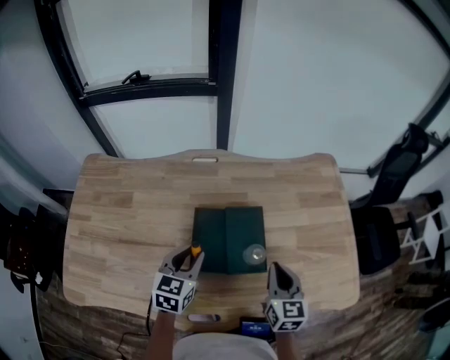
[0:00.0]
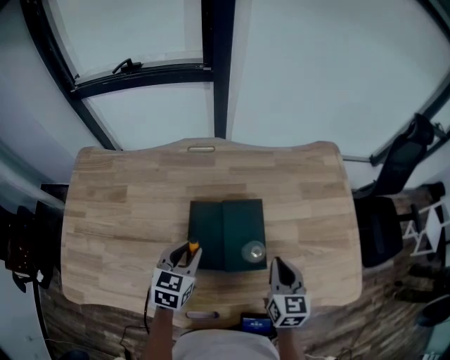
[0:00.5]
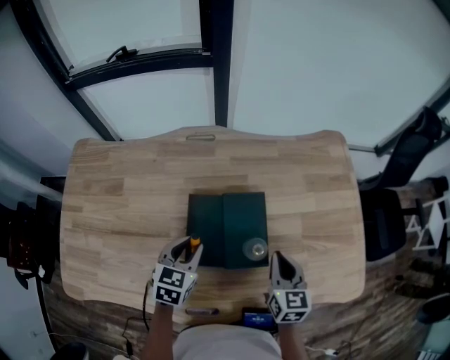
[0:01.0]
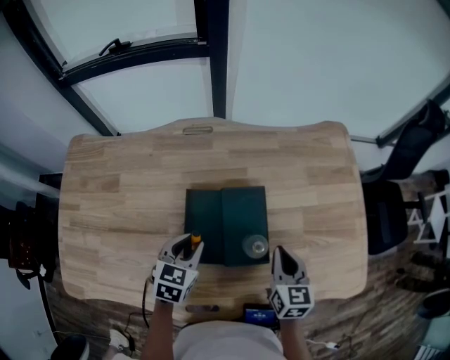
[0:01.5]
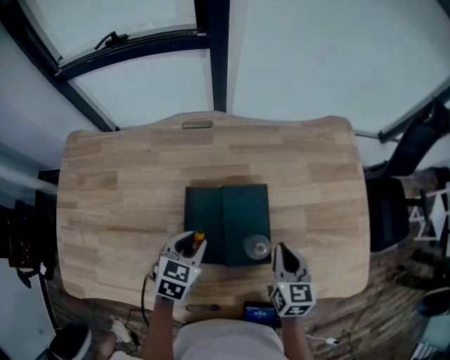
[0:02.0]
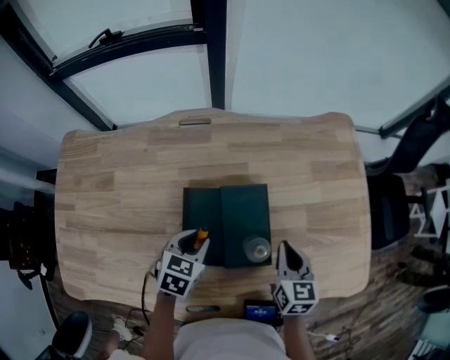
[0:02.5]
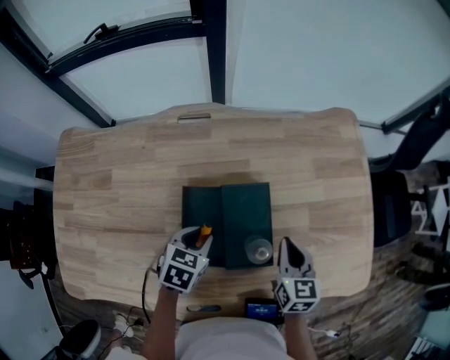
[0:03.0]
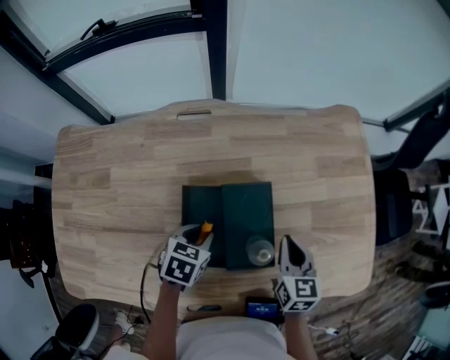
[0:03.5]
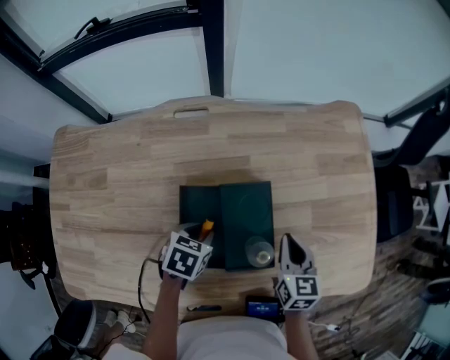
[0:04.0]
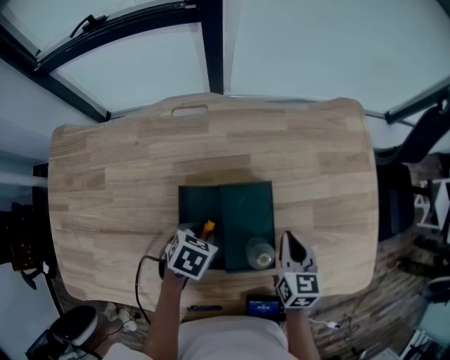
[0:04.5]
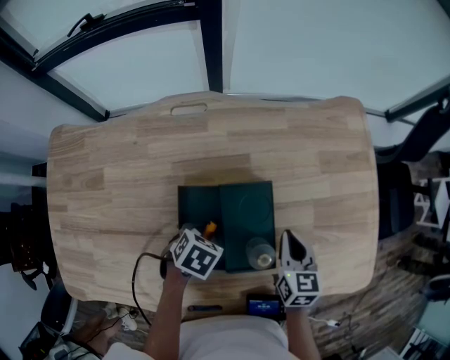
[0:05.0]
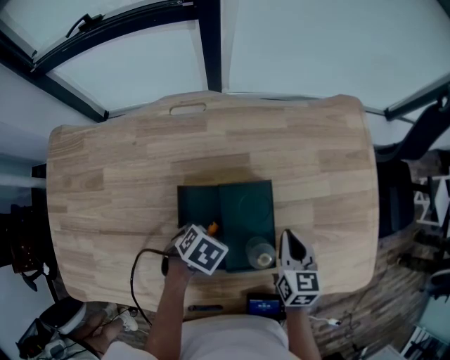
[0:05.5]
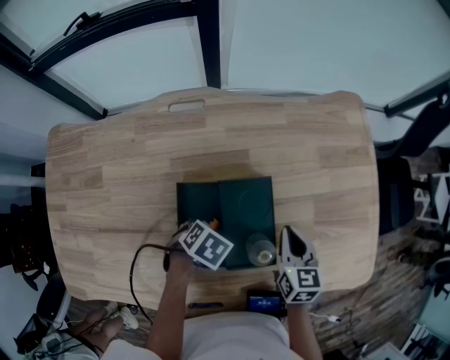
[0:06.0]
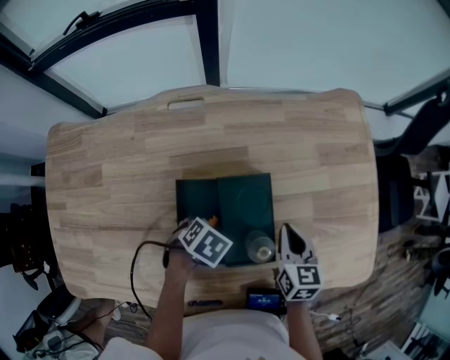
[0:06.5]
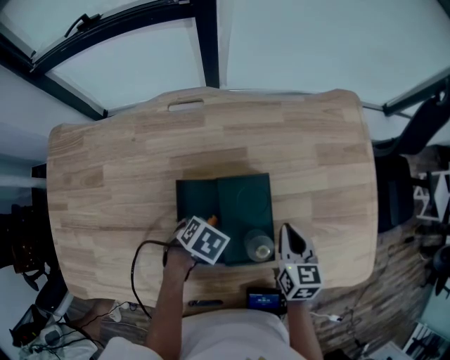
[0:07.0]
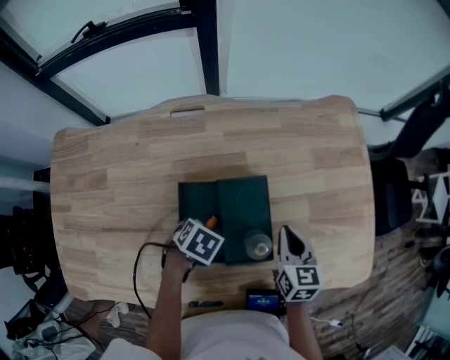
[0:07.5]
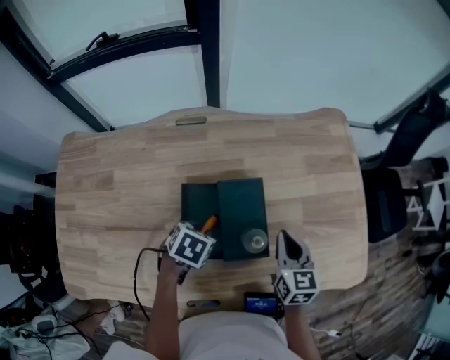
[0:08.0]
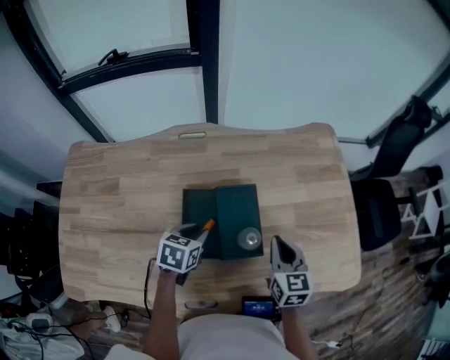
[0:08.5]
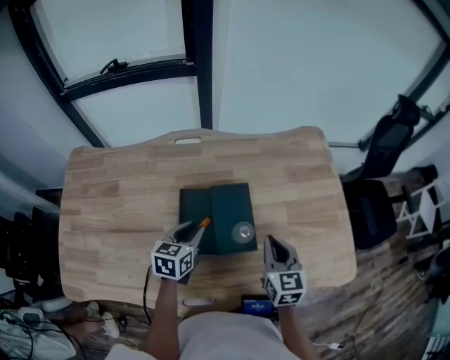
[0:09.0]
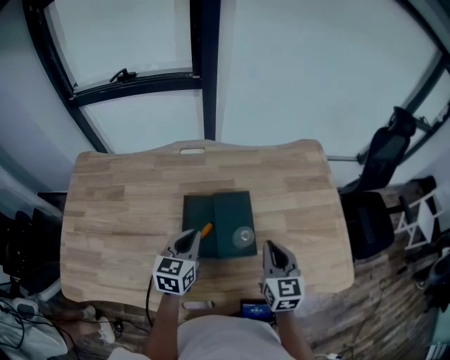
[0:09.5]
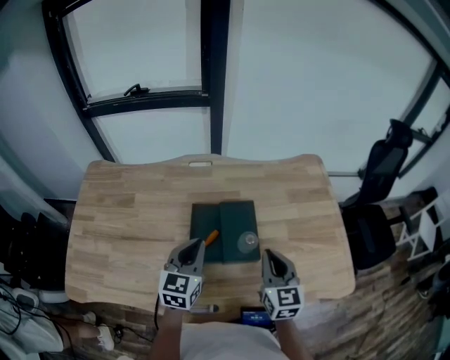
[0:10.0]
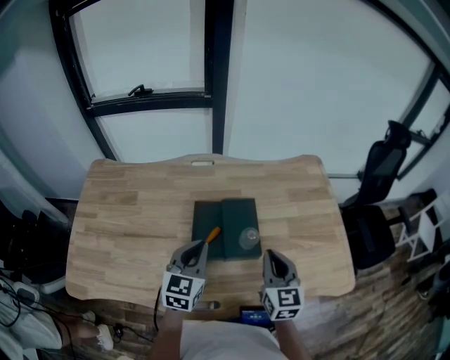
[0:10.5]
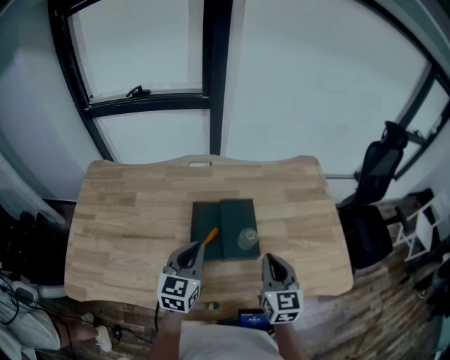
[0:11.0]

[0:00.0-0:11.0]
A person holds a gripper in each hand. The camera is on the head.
0:00.0 to 0:02.0: The grippers both shift downward by approximately 5 cm.
0:02.0 to 0:03.5: The left gripper moves some 5 cm.
0:03.5 to 0:05.5: The left gripper rotates roughly 20 degrees.
0:05.5 to 0:07.5: The grippers stay close to where they were, moving slightly.
0:07.5 to 0:09.0: Both grippers move upward, some 10 cm. The left gripper tilts its fingers some 40 degrees upward.
0:09.0 to 0:11.0: The left gripper shifts some 15 cm upward and backward, changes its angle by approximately 30 degrees, and closes its fingers. Meanwhile the right gripper shifts approximately 10 cm upward and backward.

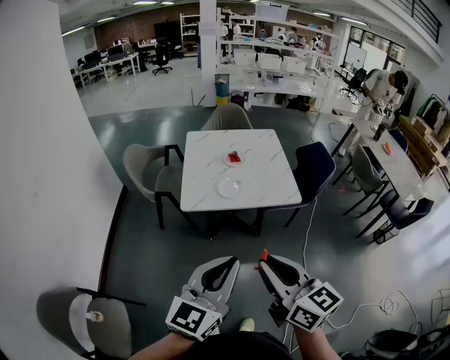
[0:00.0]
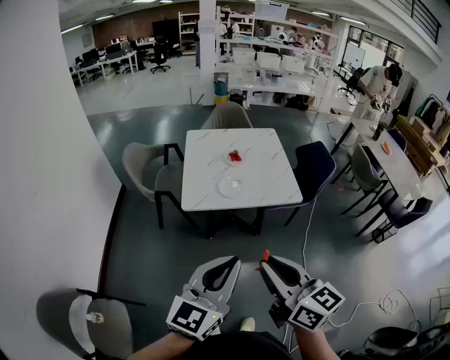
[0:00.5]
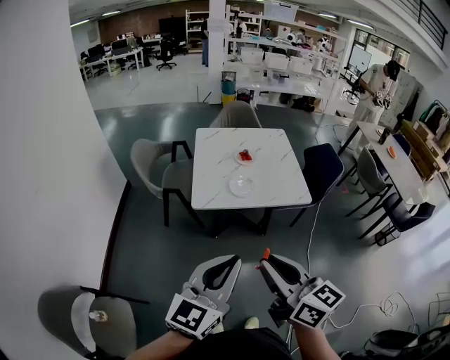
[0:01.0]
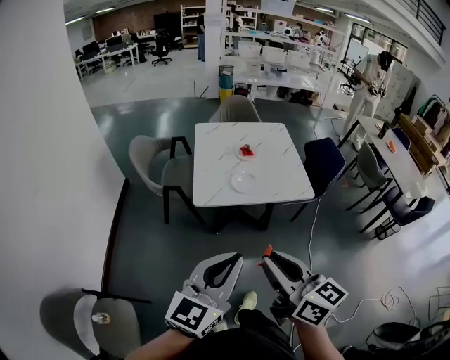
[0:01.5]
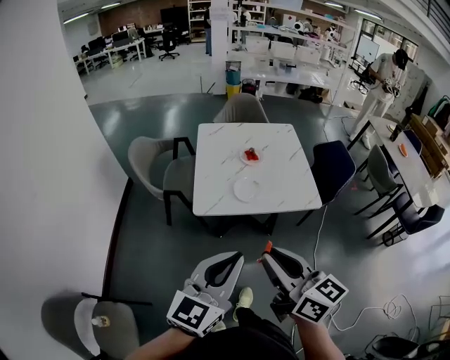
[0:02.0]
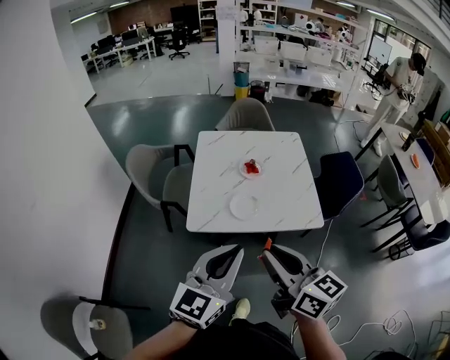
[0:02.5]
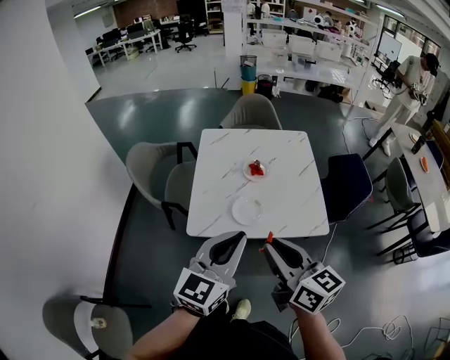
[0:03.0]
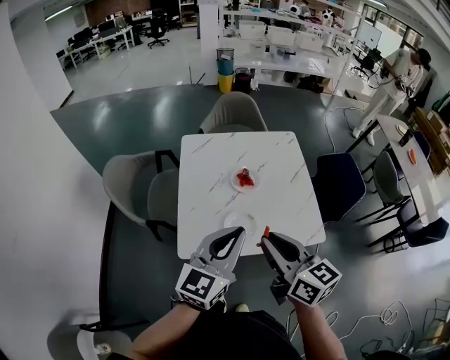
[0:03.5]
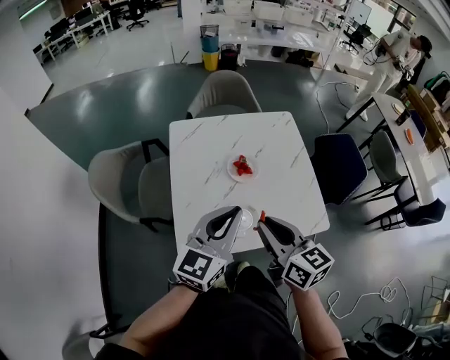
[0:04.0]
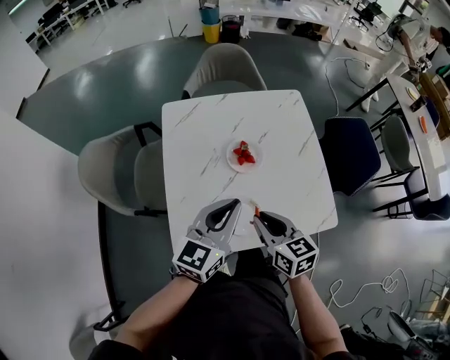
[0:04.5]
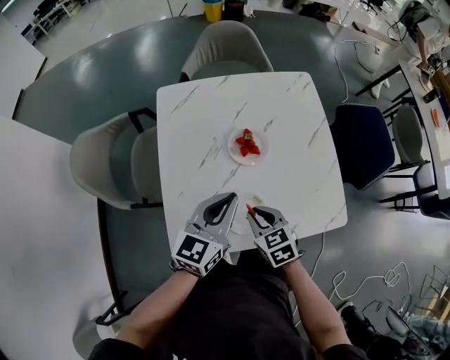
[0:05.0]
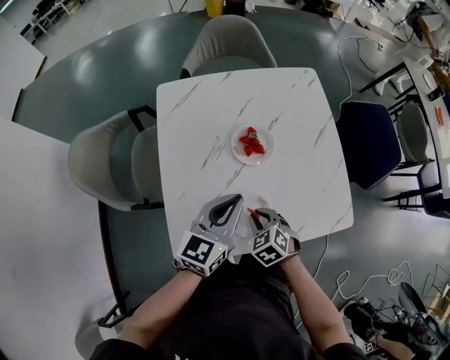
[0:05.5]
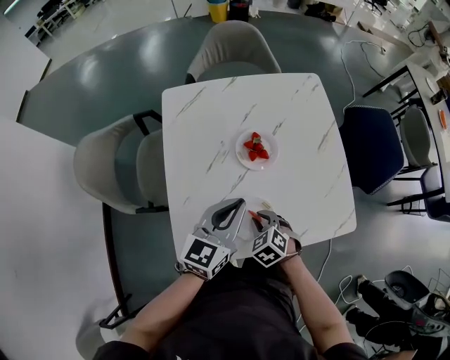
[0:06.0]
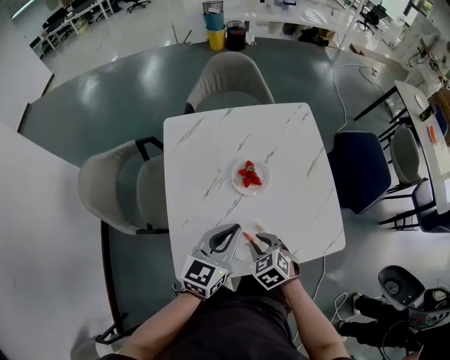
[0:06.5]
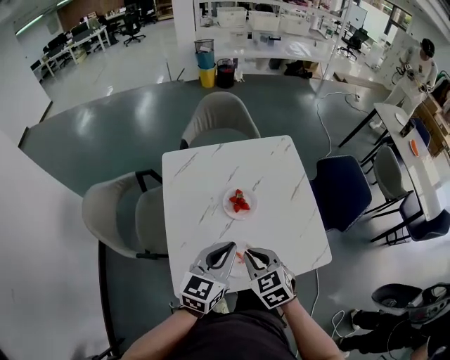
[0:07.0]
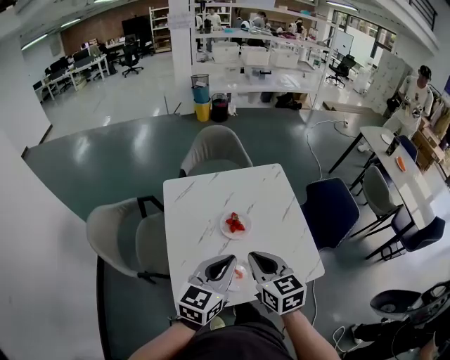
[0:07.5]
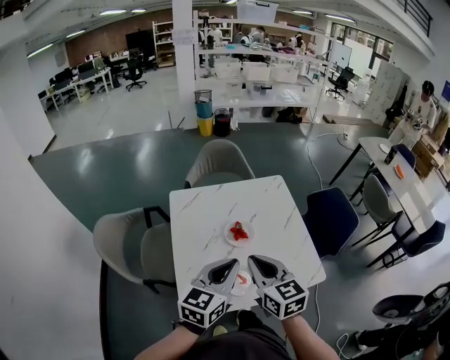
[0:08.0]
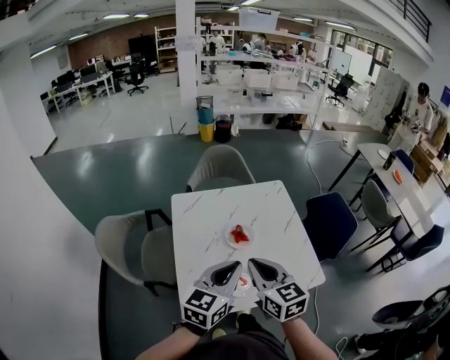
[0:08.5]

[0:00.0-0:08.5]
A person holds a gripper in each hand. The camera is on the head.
0:00.0 to 0:02.0: Both grippers travel together forward and to the left, approximately 15 cm.
0:02.0 to 0:04.0: The two grippers go about 40 cm forward.
0:04.0 to 0:06.5: The right gripper heads downward, covering roughly 25 cm, and points its fingers about 40 degrees further downward, while the left gripper shifts roughly 20 cm downward and forward.
0:06.5 to 0:08.5: The left gripper is displaced upward and backward by approximately 20 cm; the right gripper goes approximately 30 cm upward, tips its fingers upward by some 40 degrees, and closes its fingers.

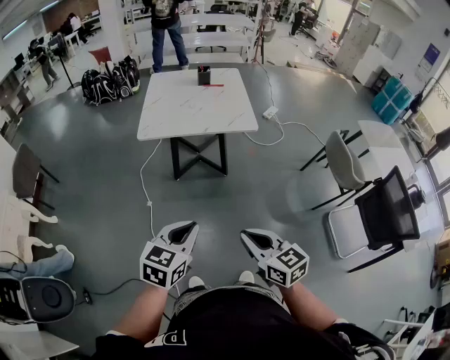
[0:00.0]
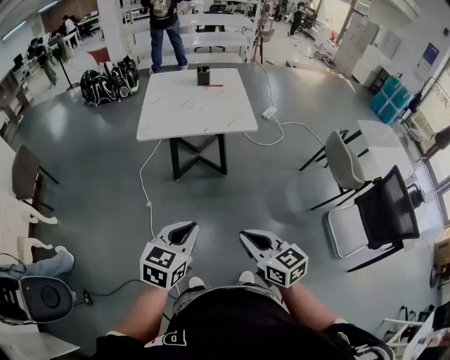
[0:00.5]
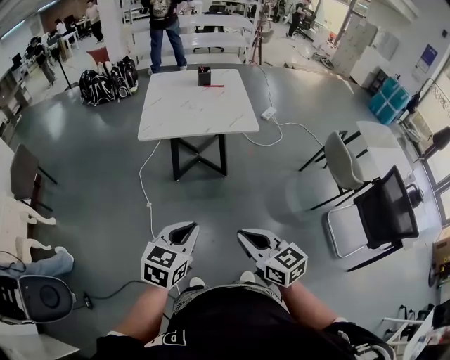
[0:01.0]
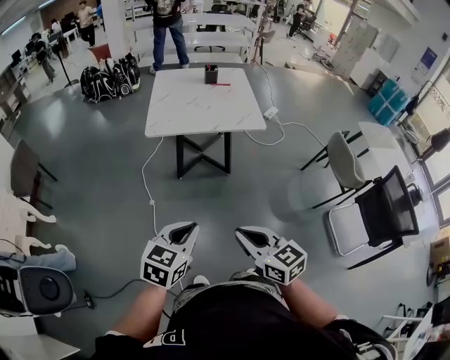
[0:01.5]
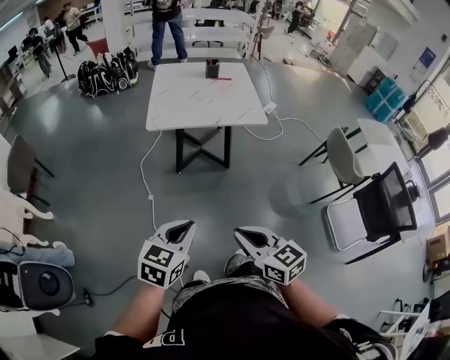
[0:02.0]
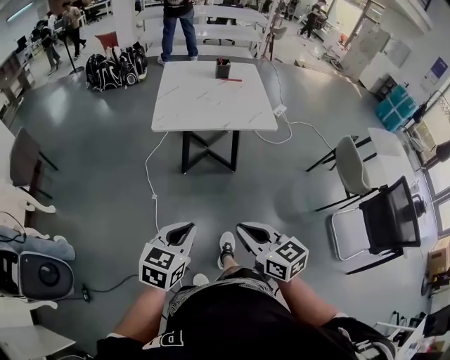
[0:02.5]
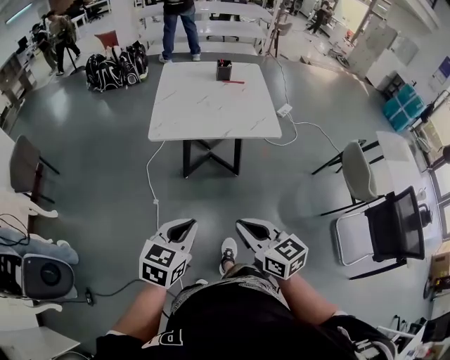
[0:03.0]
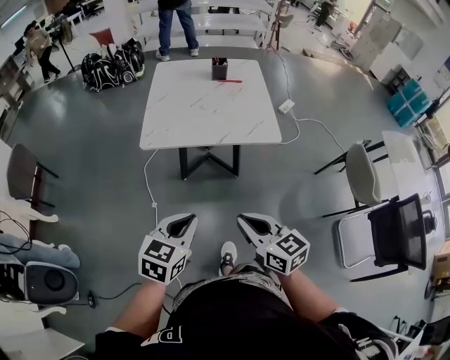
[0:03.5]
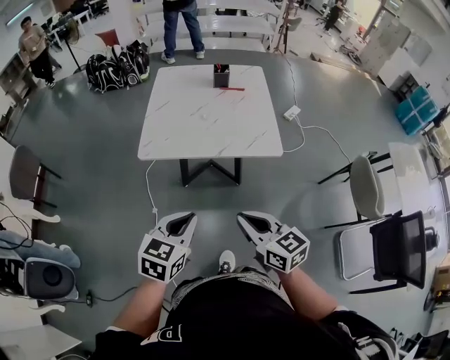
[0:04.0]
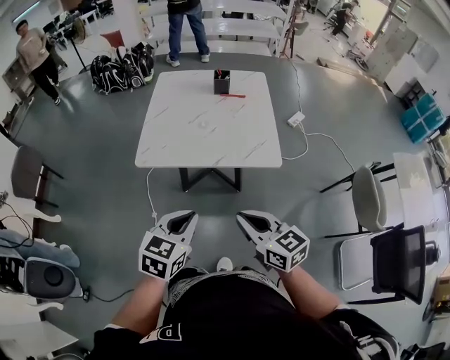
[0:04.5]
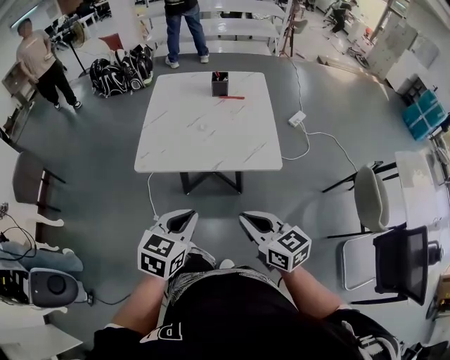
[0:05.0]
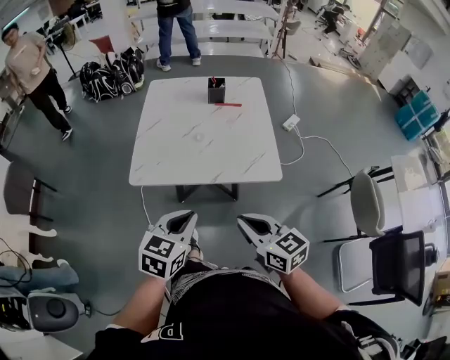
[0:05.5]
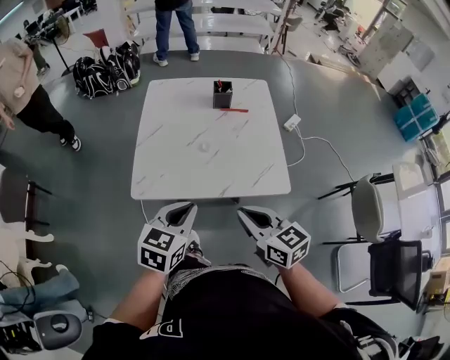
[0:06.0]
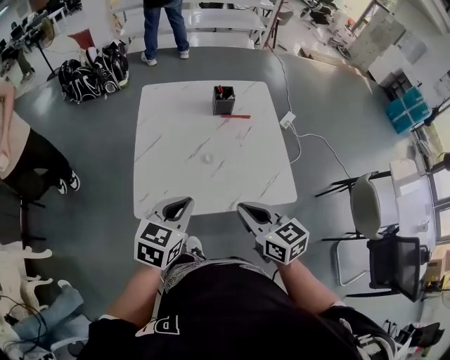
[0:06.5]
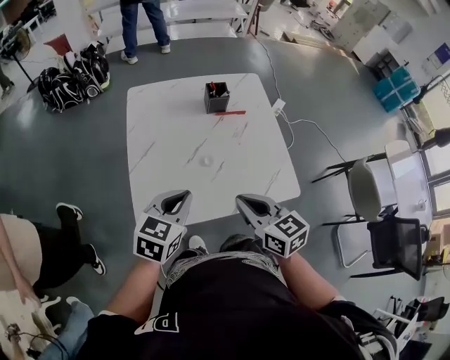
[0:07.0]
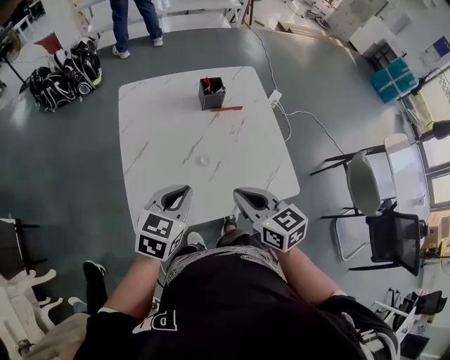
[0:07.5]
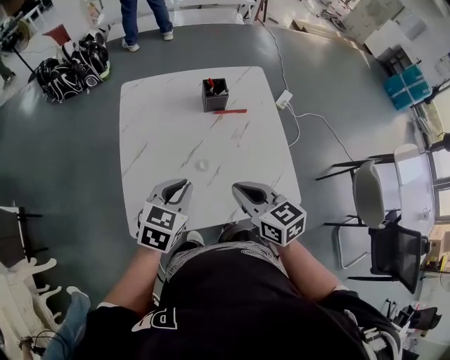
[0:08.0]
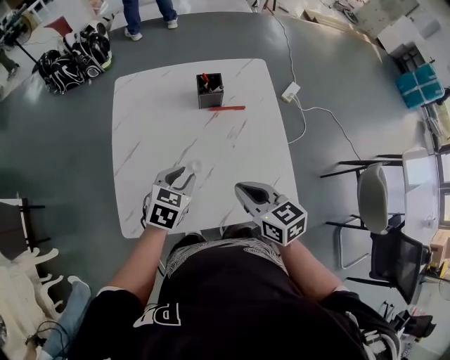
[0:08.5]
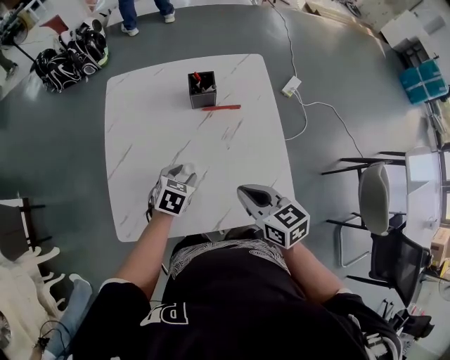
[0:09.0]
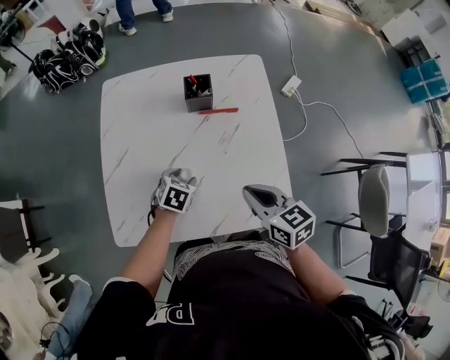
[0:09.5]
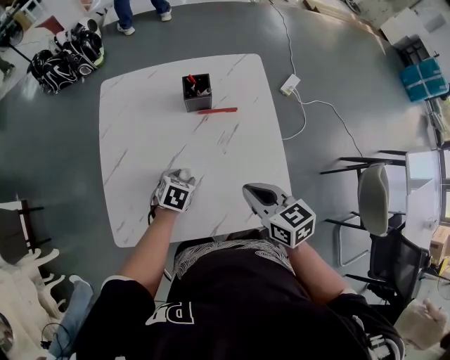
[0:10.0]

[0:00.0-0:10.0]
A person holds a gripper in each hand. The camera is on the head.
0:00.0 to 0:02.0: Both grippers move to the left, about 10 cm.
0:02.0 to 0:04.0: The grippers both shift forward by roughly 30 cm.
0:04.0 to 0:06.0: Both grippers move forward, about 20 cm.
0:06.0 to 0:08.0: Both grippers move forward, approximately 20 cm.
0:08.0 to 0:10.0: The left gripper is displaced downward and forward by roughly 25 cm, rotates about 30 degrees, and opens, while the right gripper travels to the right, forward and downward by approximately 15 cm.
